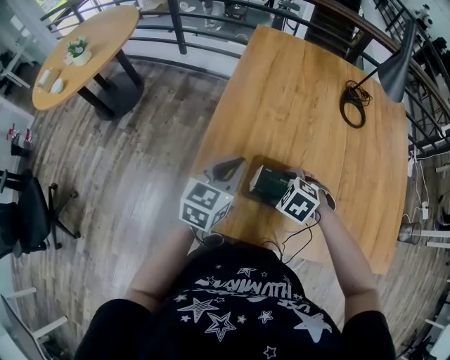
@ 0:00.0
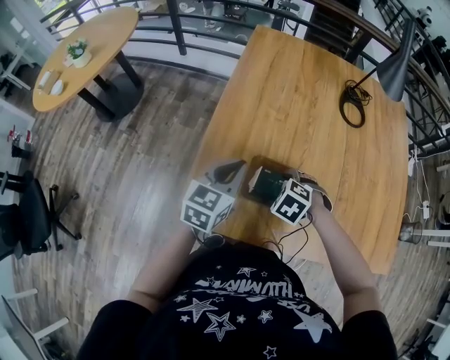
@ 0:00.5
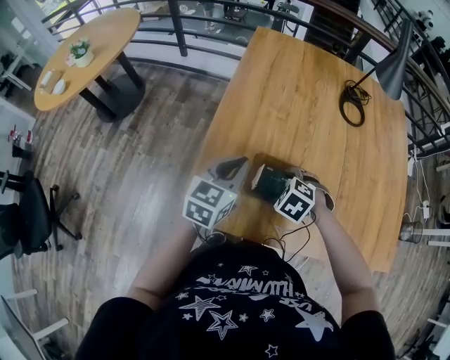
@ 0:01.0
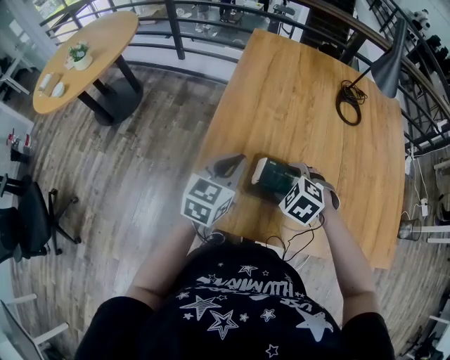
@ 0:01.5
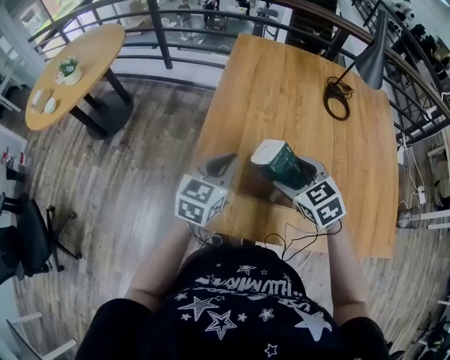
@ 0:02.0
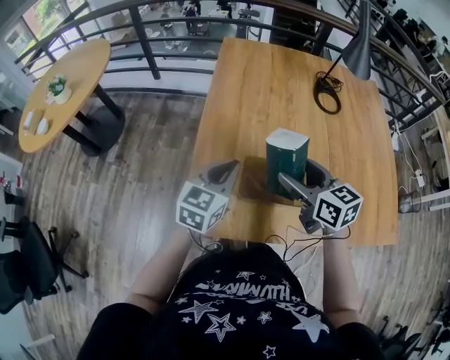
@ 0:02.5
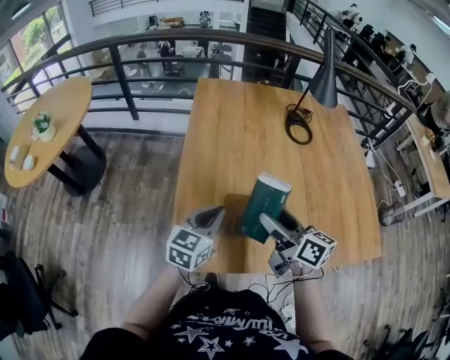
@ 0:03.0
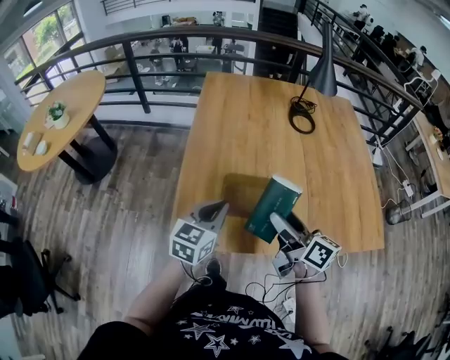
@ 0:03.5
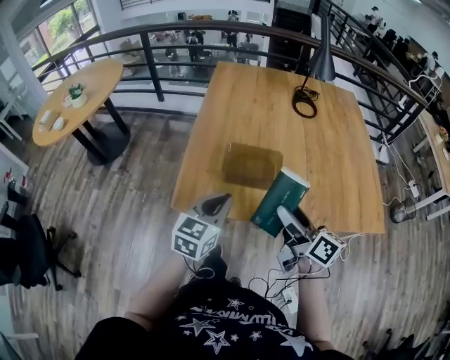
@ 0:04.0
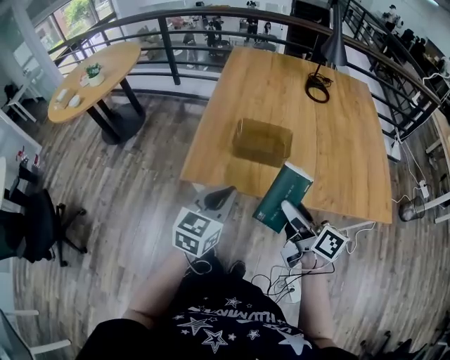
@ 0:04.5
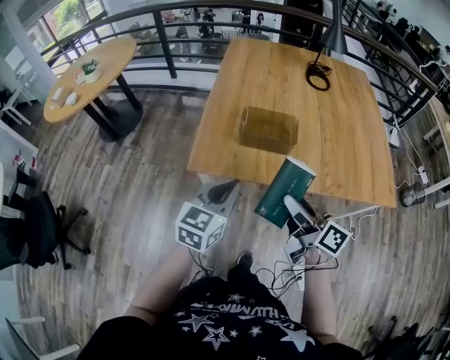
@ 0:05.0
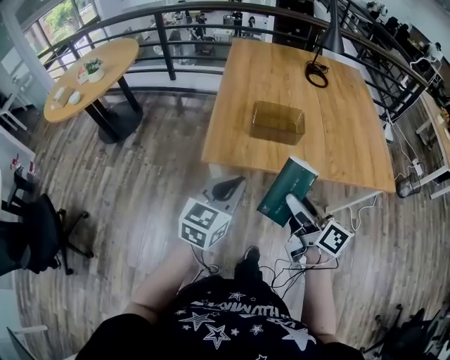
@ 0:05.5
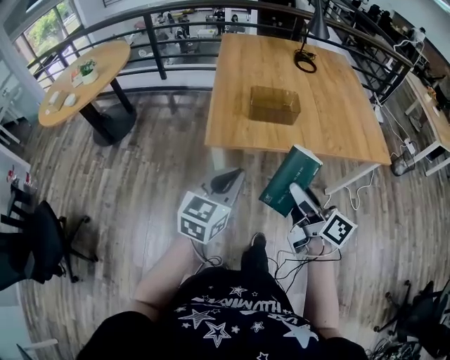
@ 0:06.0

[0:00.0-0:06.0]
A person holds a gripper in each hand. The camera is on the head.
0:00.0 to 0:02.0: The right gripper heads upward, covering roughly 10 cm, and points its fingers approximately 30 degrees further upward.
0:02.0 to 0:04.0: Both grippers move backward, some 25 cm. The right gripper tips its fingers upward by roughly 40 degrees.
0:04.0 to 0:06.0: The grippers both shift backward and to the left by approximately 30 cm.

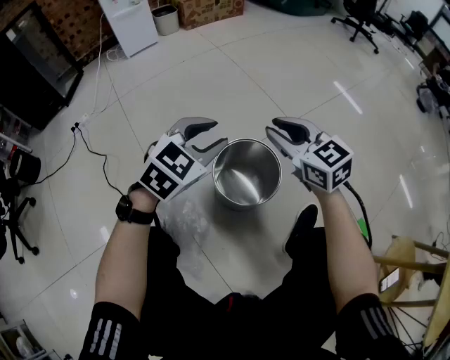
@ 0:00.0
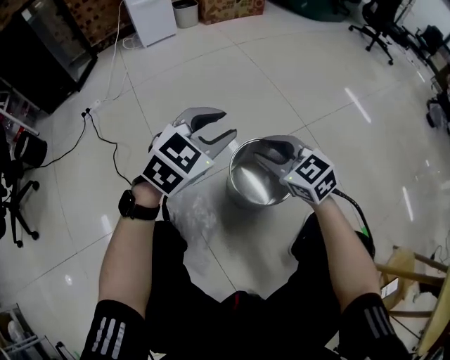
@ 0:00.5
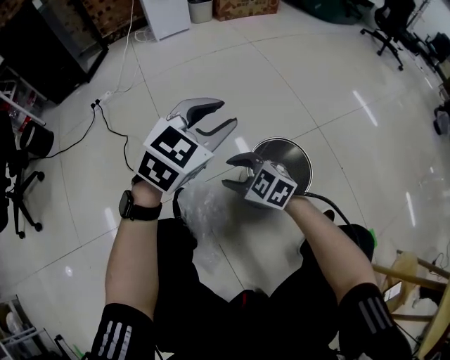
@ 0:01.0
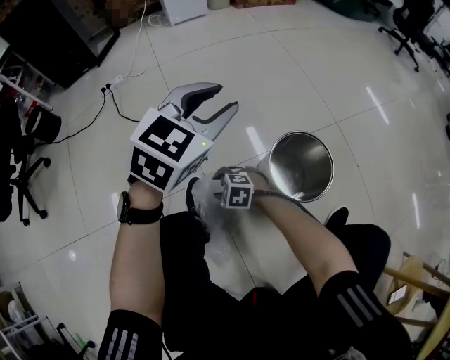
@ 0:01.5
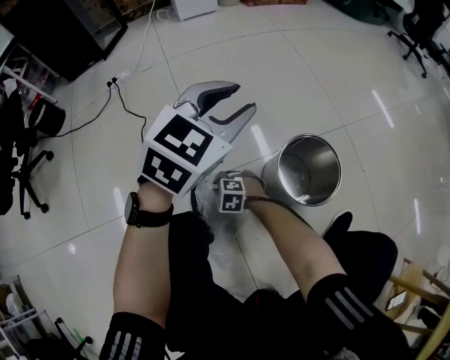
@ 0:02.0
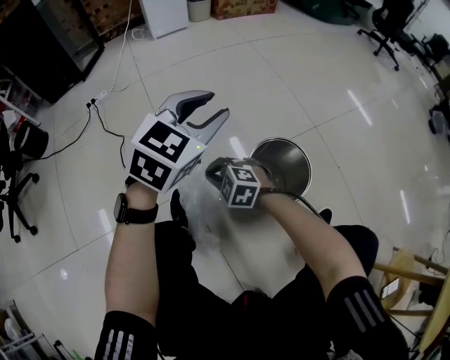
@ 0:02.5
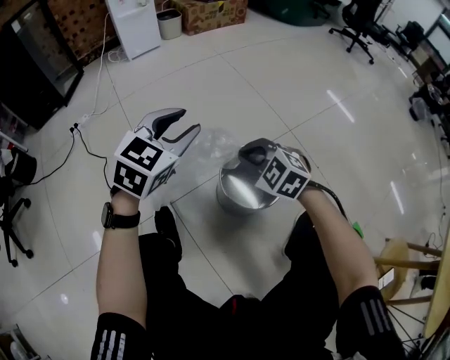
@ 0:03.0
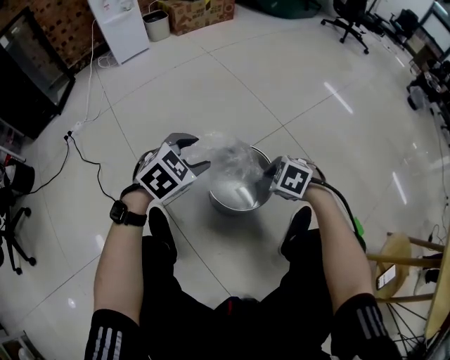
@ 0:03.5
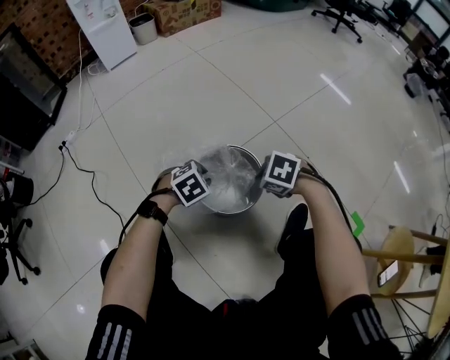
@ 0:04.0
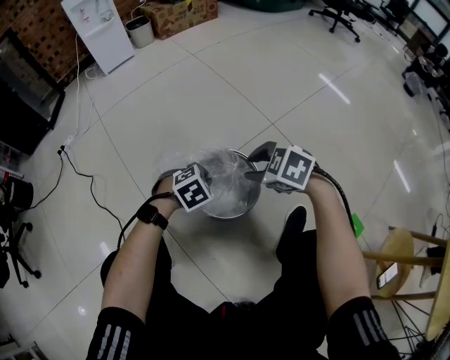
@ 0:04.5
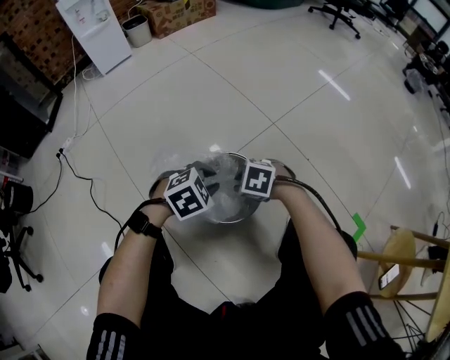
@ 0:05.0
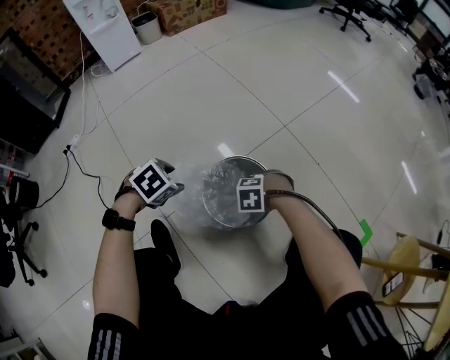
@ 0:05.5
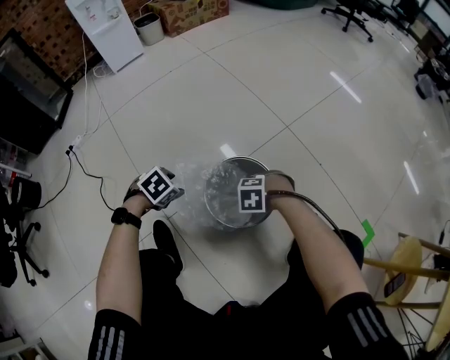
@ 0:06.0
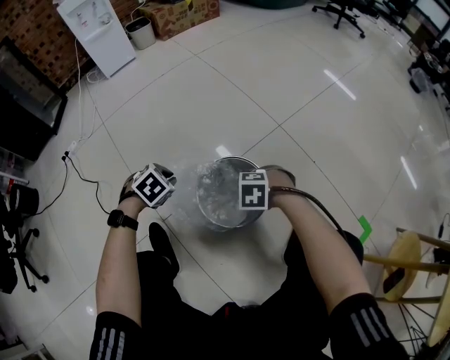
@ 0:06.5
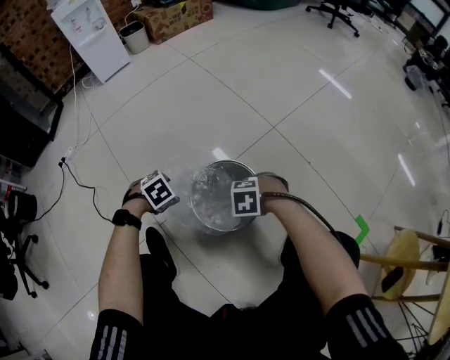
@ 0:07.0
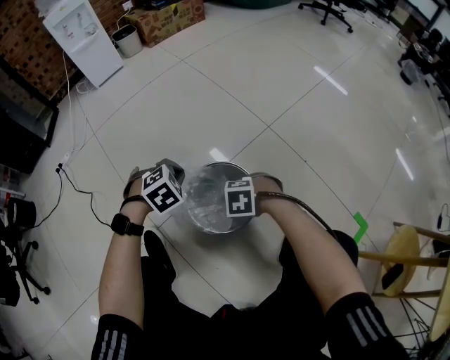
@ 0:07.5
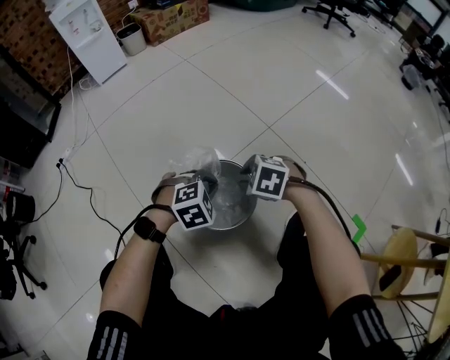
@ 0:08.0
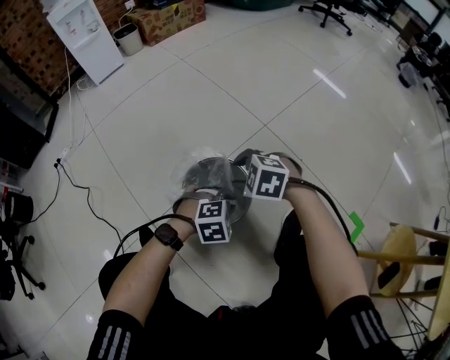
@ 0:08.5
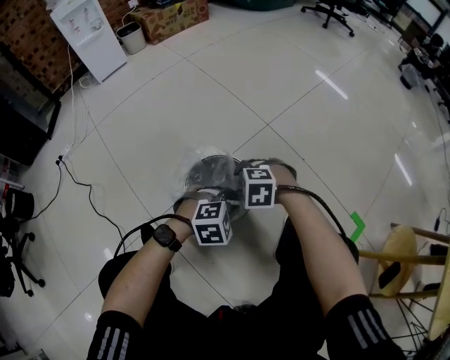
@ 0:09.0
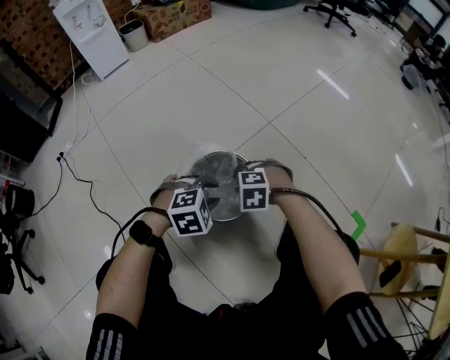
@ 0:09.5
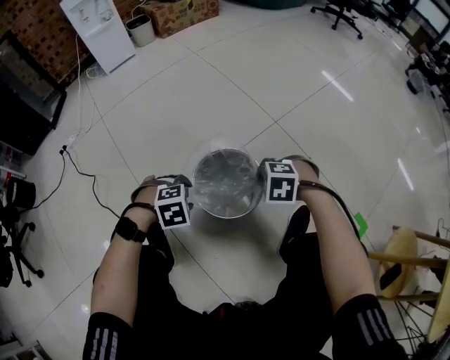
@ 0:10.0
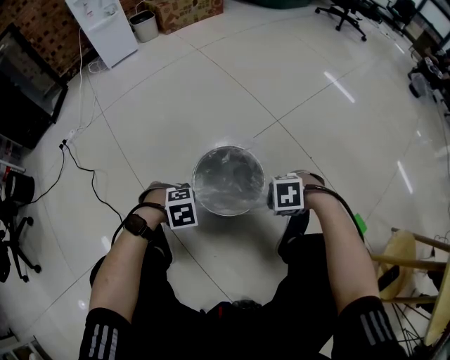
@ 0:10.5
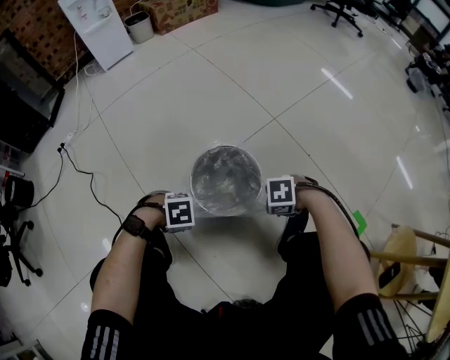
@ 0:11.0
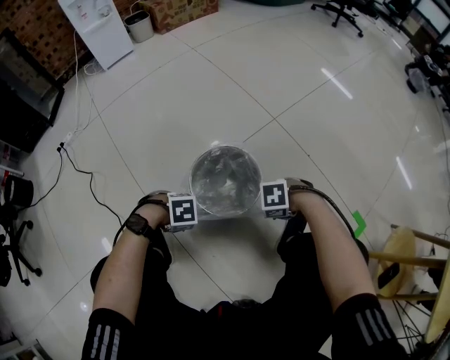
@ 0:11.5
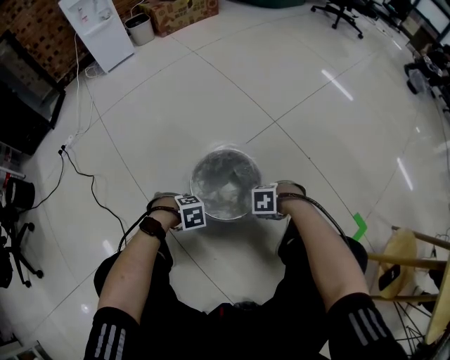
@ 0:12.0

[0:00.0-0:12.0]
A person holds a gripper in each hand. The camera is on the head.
0:00.0 to 0:02.0: The left gripper ends up approximately 15 cm from where it was. The right gripper ends up approximately 50 cm from where it was, tips its fingers downward by roughly 40 degrees, and opens and closes again.
0:02.0 to 0:04.0: The left gripper moves downward, roughly 25 cm, angles its fingers downward, by roughly 40 degrees, and opens, then closes again, while the right gripper shifts by some 40 cm, turns by approximately 40 degrees, and closes its fingers.
0:04.0 to 0:06.0: The left gripper goes upward and returns, some 5 cm each way, and opens its fingers, while the right gripper moves downward, some 10 cm, rotates roughly 20 degrees, and opens.
0:06.0 to 0:08.0: The right gripper moves upward, some 10 cm, and rotates approximately 20 degrees; the left gripper moves about 20 cm, swivels about 40 degrees, and closes up.
0:08.0 to 0:10.0: The left gripper swings up and down, some 5 cm each way, with 2 reversals, and opens, while the right gripper moves approximately 5 cm, and closes its fingers.
0:10.0 to 0:12.0: The grippers both shift downward by about 10 cm. The right gripper swivels about 30 degrees. Meanwhile the left gripper closes its fingers.

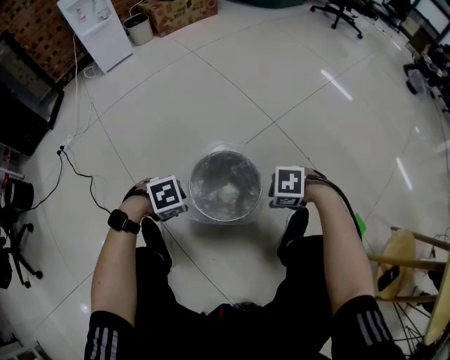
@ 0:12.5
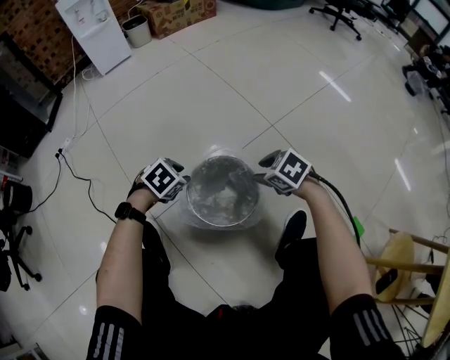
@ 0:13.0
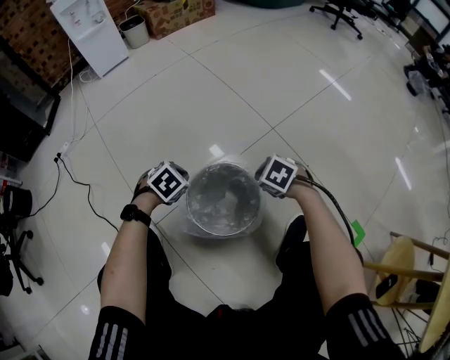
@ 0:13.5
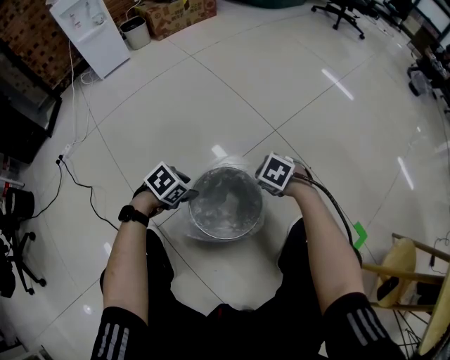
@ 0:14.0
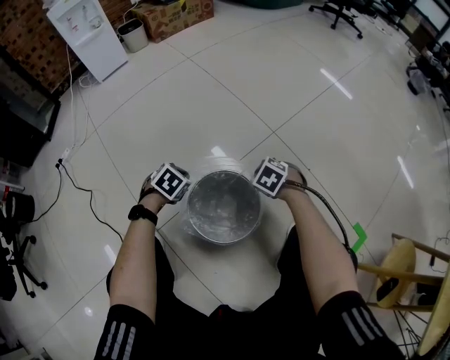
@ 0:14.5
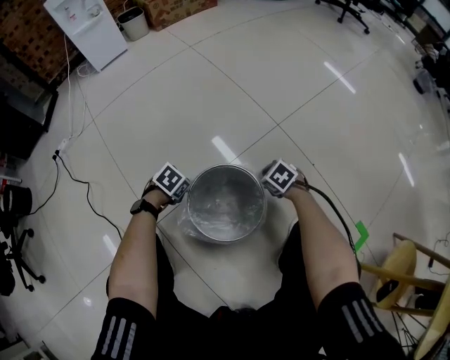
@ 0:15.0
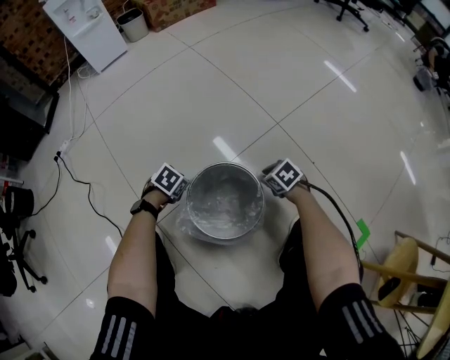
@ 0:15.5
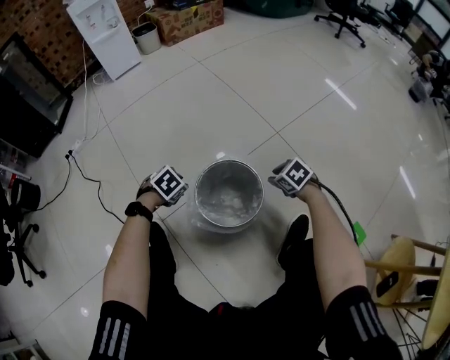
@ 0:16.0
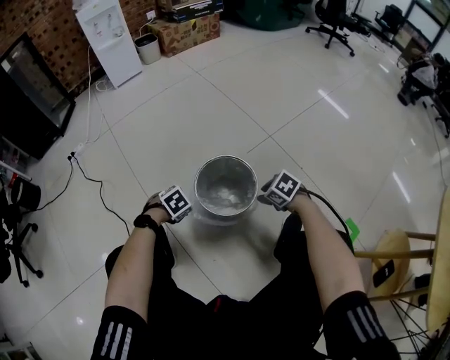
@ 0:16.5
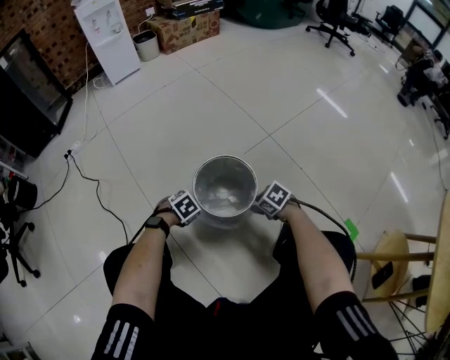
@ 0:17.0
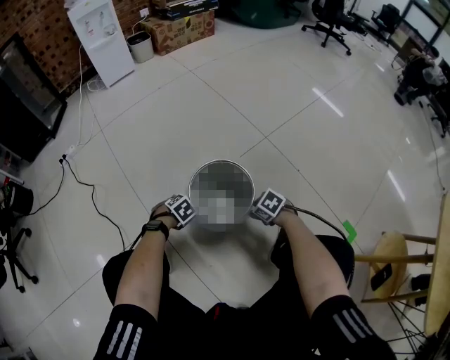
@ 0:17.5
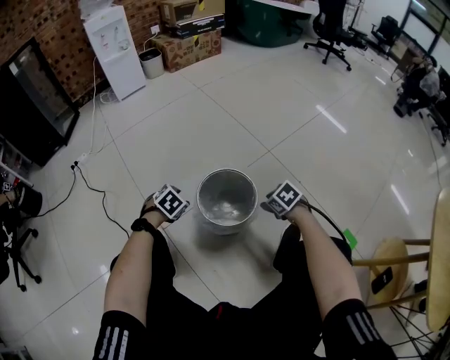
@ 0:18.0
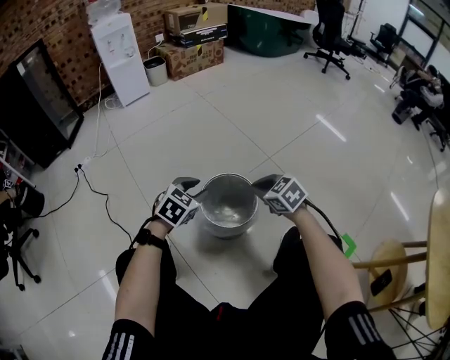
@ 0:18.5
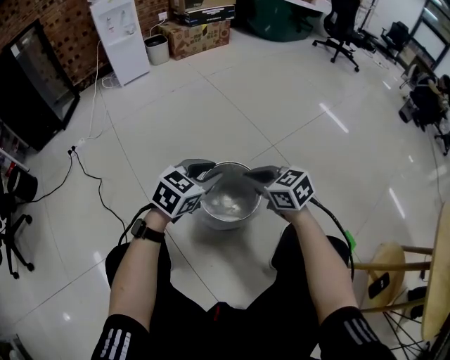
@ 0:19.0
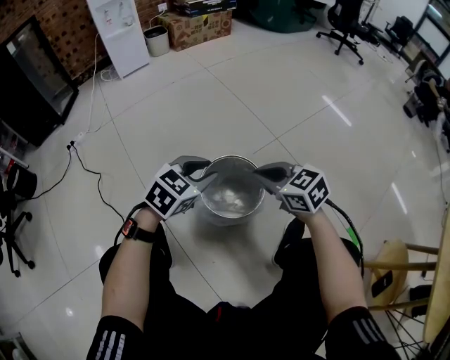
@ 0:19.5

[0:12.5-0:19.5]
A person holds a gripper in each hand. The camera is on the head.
0:12.5 to 0:14.5: The left gripper changes place by approximately 20 cm, changes its angle by approximately 30 degrees, and closes; the right gripper moves about 20 cm, rotates approximately 30 degrees, and closes.
0:14.5 to 0:16.0: The left gripper moves roughly 10 cm downward and comes back, and opens its fingers; the right gripper reaches roughly 5 cm downward, then returns, and opens.
0:16.0 to 0:17.5: The right gripper changes place by about 15 cm; the left gripper goes approximately 10 cm downward.
0:17.5 to 0:19.5: Both grippers travel together upward, some 30 cm. The right gripper tilts its fingers approximately 30 degrees upward, and closes up. The left gripper points its fingers some 50 degrees further upward.

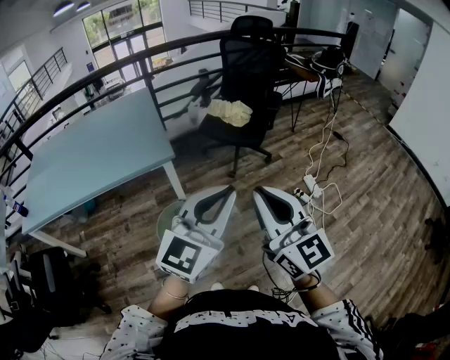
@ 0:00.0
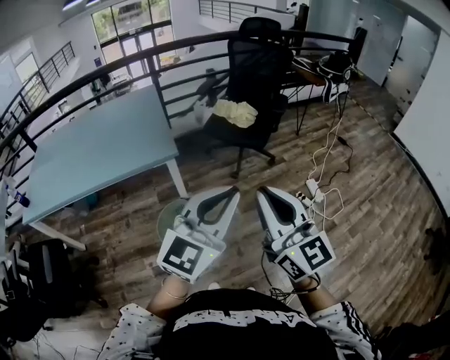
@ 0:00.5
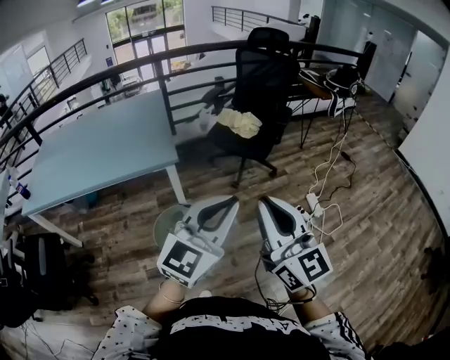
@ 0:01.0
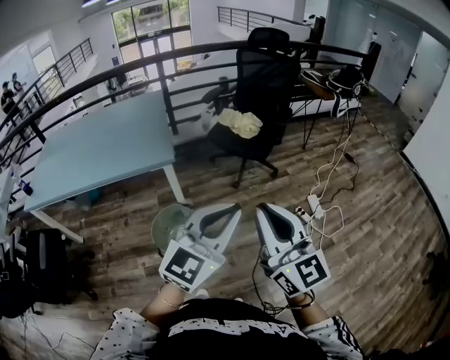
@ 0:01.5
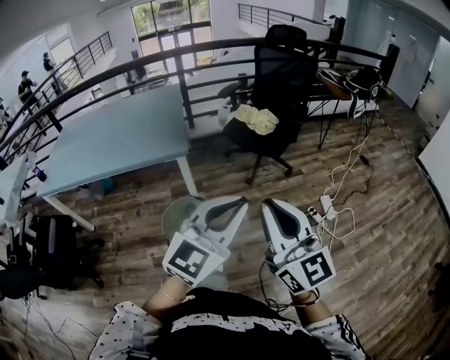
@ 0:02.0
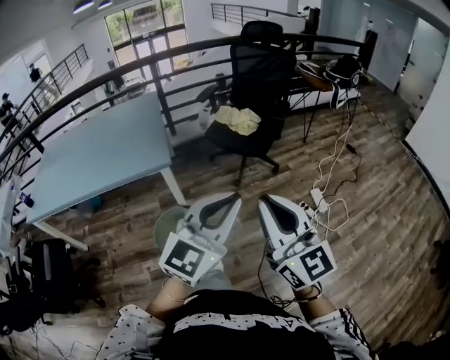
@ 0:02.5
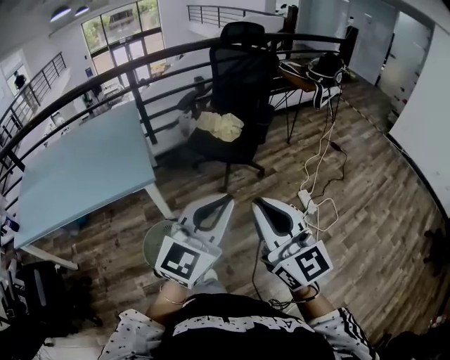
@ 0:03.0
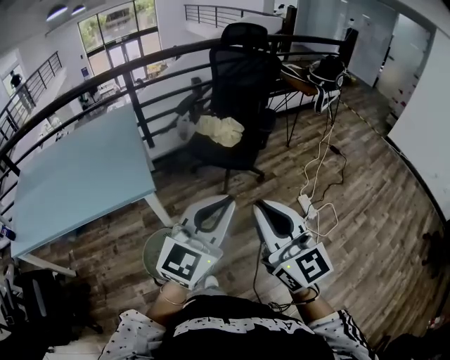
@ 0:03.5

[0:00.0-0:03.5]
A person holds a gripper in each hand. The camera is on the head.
0:00.0 to 0:02.0: The grippers both shift to the right by roughly 10 cm.
0:02.0 to 0:03.5: The two grippers go roughly 15 cm forward.
